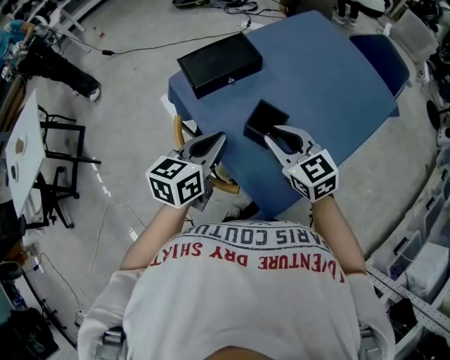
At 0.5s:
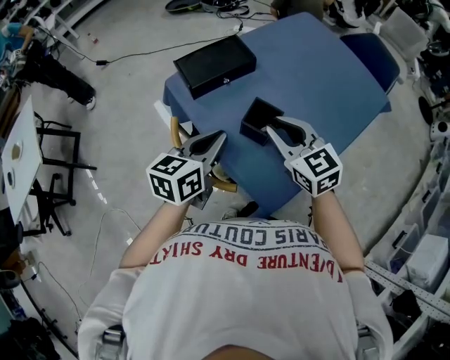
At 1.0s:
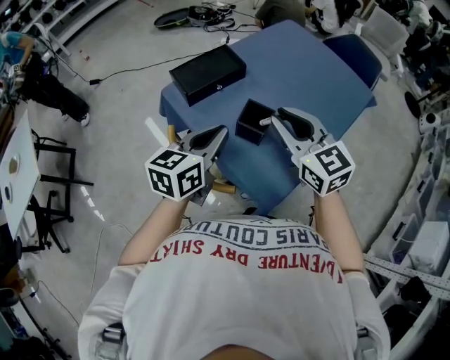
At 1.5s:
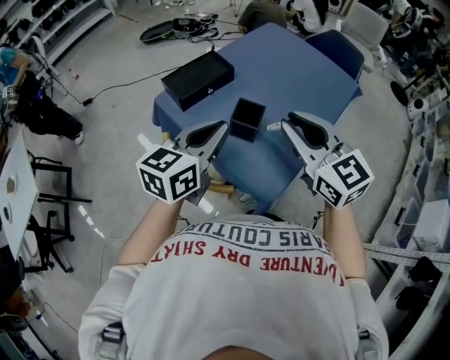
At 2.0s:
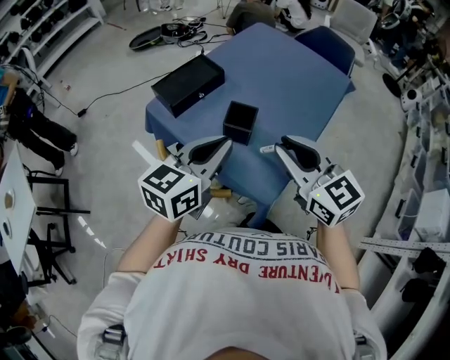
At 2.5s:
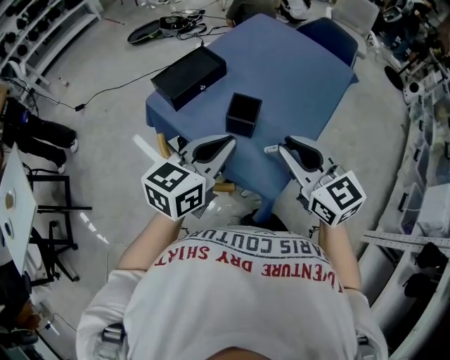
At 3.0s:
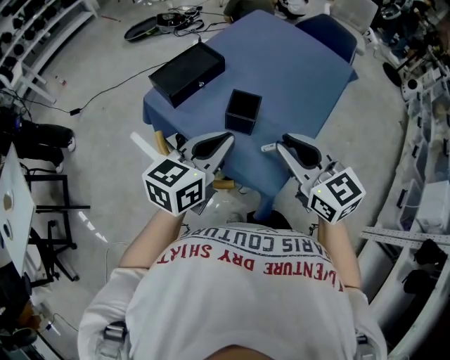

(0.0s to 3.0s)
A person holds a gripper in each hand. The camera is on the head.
0.0s - 1.5s: The right gripper is displaced upward and backward by roughly 20 cm, and turns by roughly 20 degrees; the left gripper heads upward, covering approximately 10 cm, and swivels approximately 20 degrees.
1.5s - 3.0s: The right gripper goes roughly 5 cm downward.

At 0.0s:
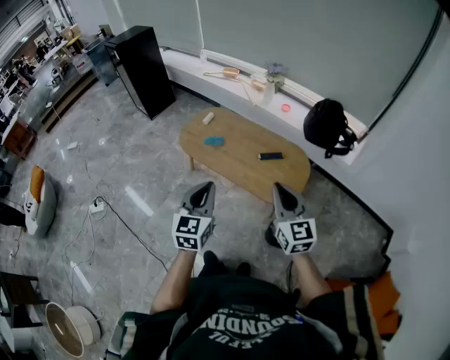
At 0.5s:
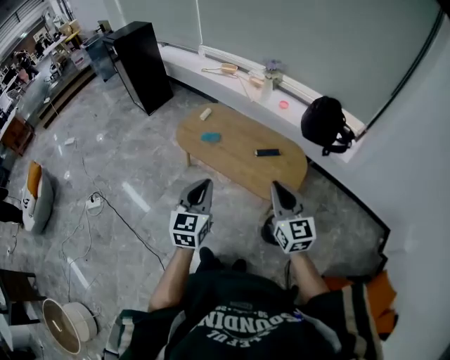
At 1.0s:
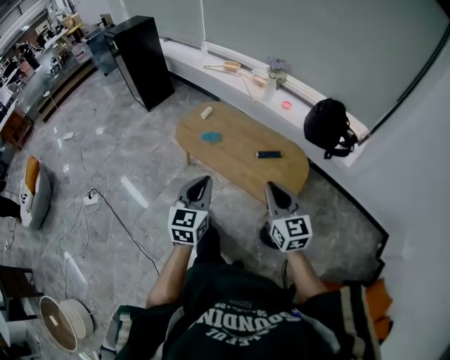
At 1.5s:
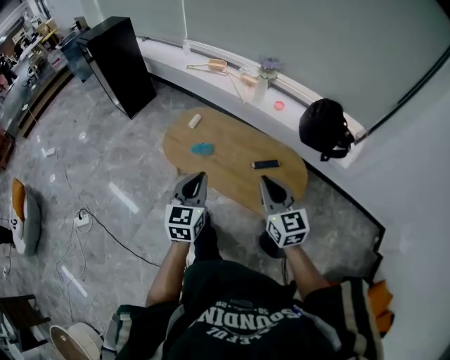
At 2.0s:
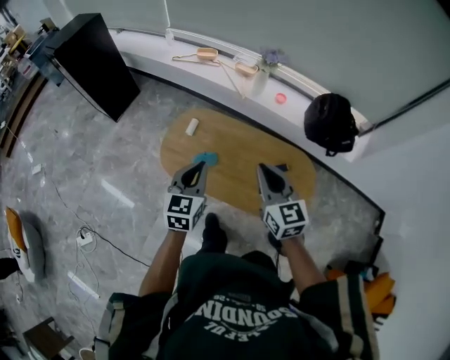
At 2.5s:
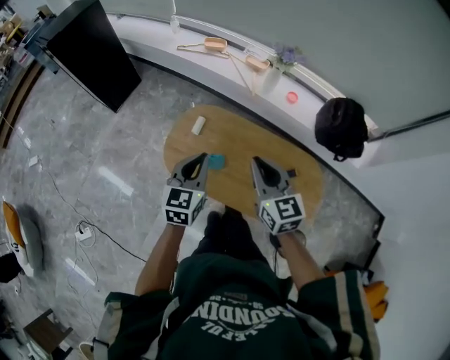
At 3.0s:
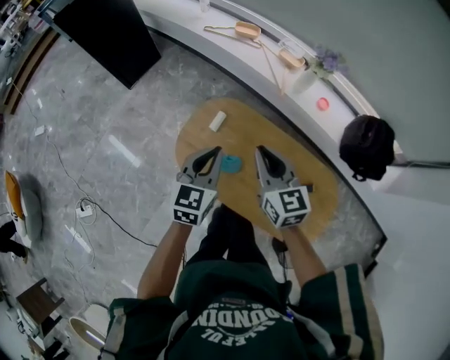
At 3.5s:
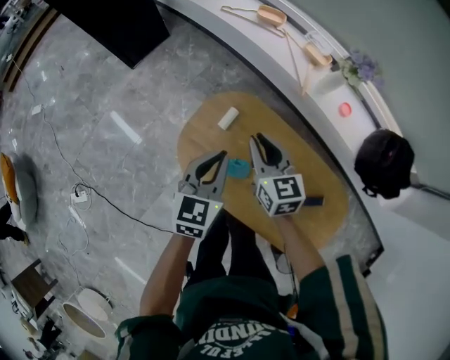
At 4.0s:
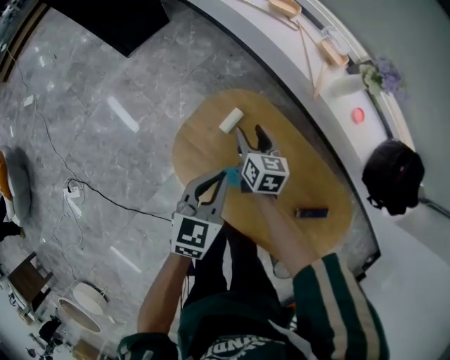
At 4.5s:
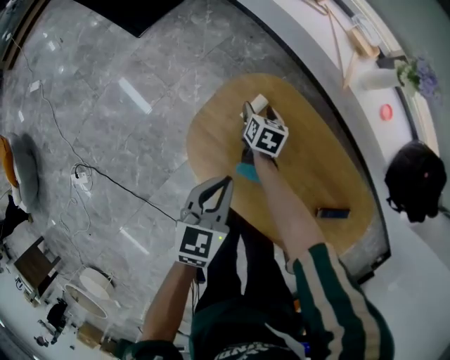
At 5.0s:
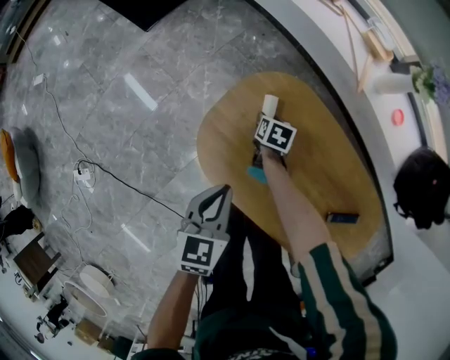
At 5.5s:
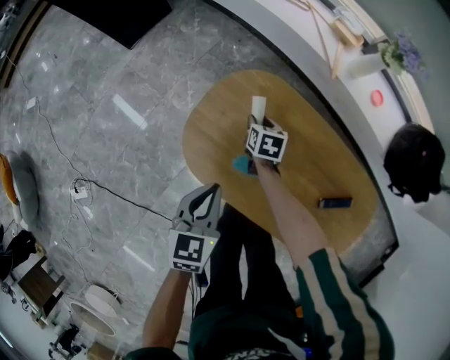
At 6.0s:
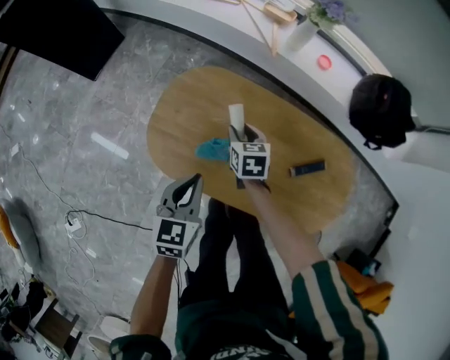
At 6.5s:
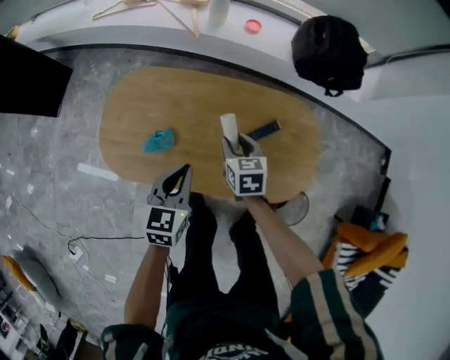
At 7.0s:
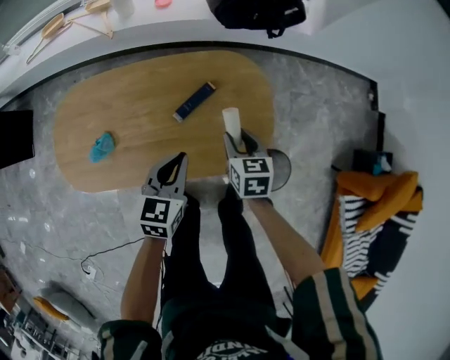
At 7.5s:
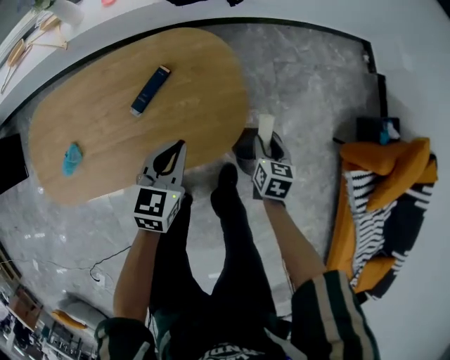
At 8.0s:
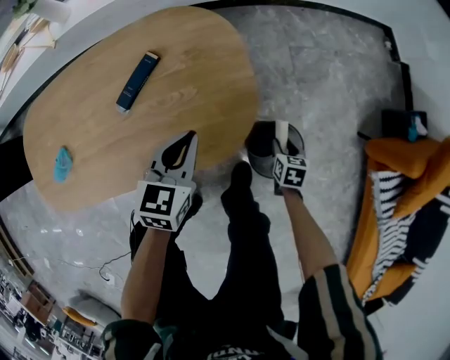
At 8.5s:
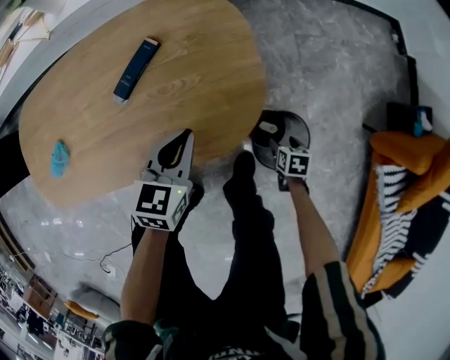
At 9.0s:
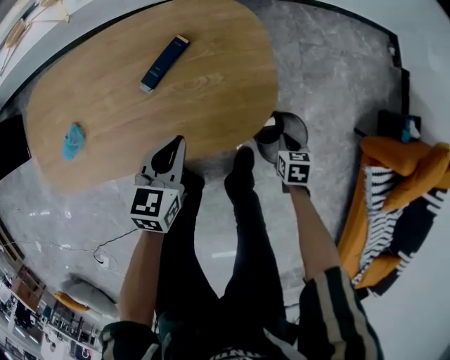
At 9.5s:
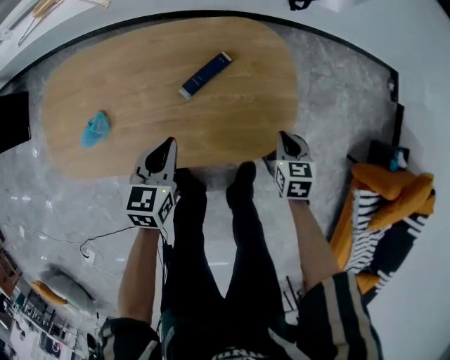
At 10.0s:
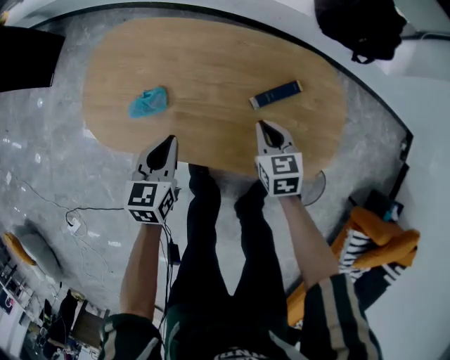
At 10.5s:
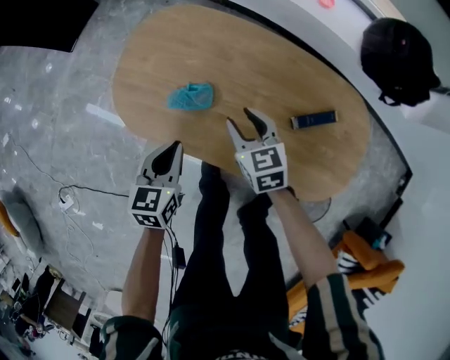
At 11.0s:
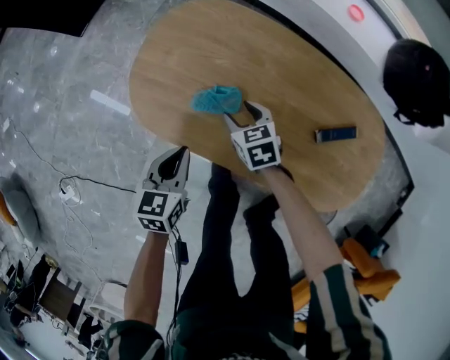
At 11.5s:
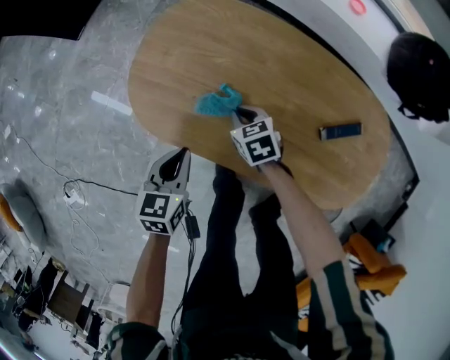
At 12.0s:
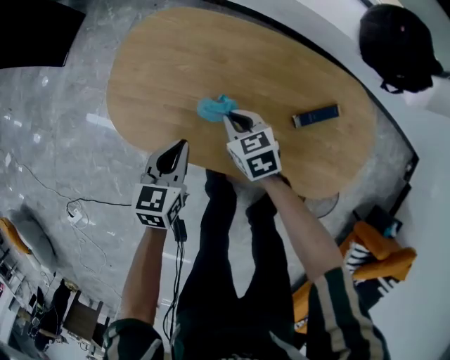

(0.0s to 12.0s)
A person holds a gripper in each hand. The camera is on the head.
0.0s - 2.0s: Both grippers move forward, some 40 cm.
2.0s - 4.0s: The right gripper heads downward, forward and to the left, covering roughly 60 cm, rotates roughly 30 degrees, and opens up, while the left gripper travels forward and downward by roughly 30 cm.
4.0s - 6.0s: The left gripper heads backward, covering some 10 cm. The right gripper moves backward and to the right, roughly 15 cm, and moves about 20 cm downward and comes back.
6.0s - 8.0s: The pair of grippers is taken some 70 cm. The right gripper changes its angle by some 50 degrees; the left gripper turns by about 40 degrees.
8.0s - 10.0s: The left gripper moves about 40 cm, and swivels some 40 degrees, while the right gripper changes place by about 50 cm, turns by some 50 degrees, and closes.
10.0s - 12.0s: The left gripper travels to the left by approximately 10 cm. The right gripper is displaced to the left and forward by approximately 25 cm, changes its angle by roughly 20 degrees, and opens and closes again.

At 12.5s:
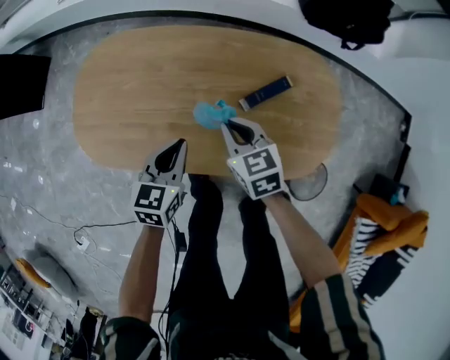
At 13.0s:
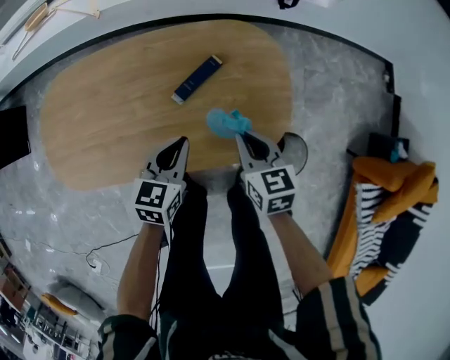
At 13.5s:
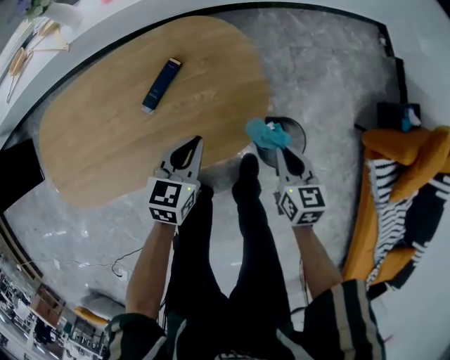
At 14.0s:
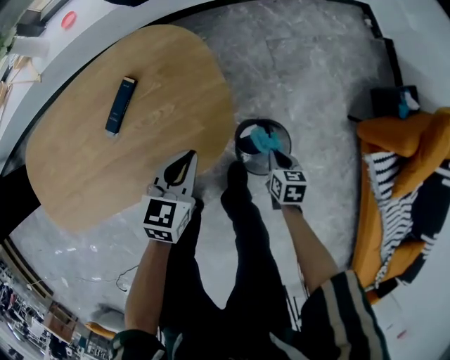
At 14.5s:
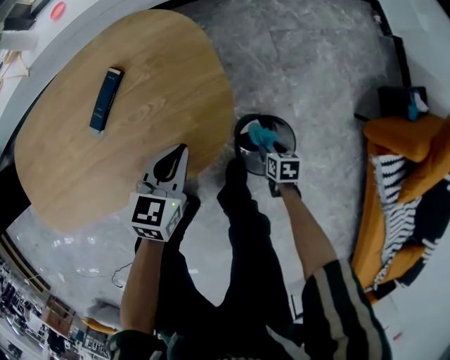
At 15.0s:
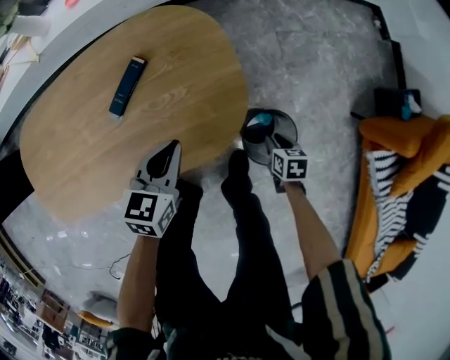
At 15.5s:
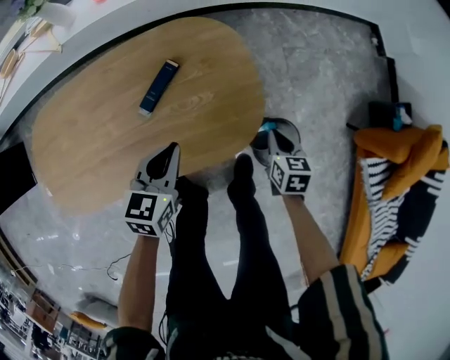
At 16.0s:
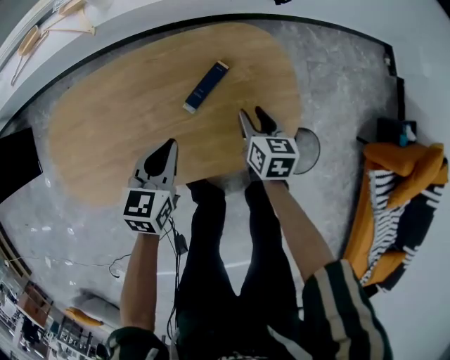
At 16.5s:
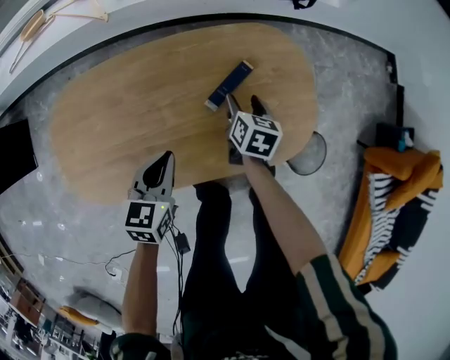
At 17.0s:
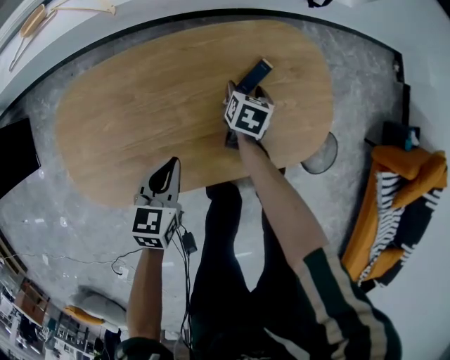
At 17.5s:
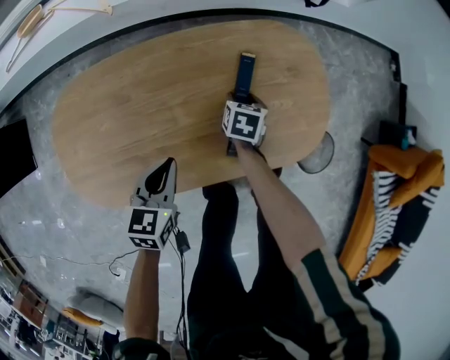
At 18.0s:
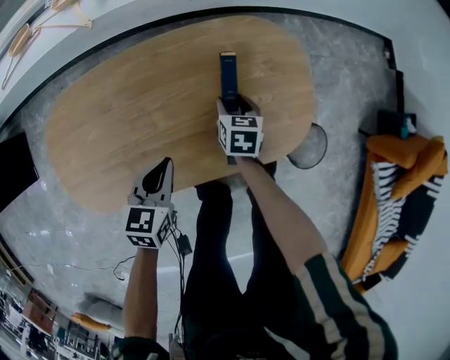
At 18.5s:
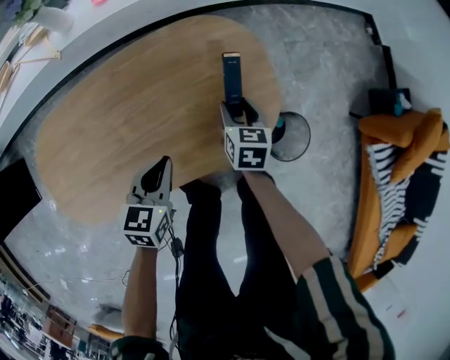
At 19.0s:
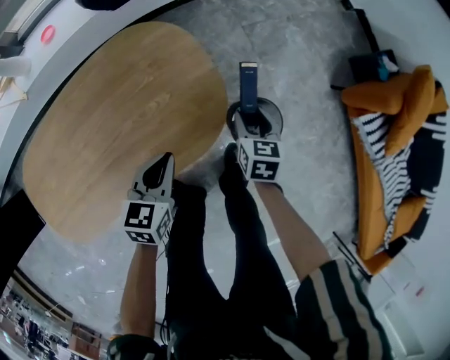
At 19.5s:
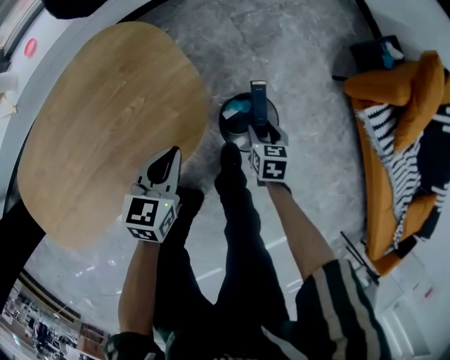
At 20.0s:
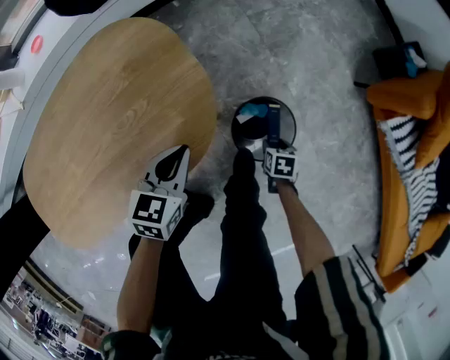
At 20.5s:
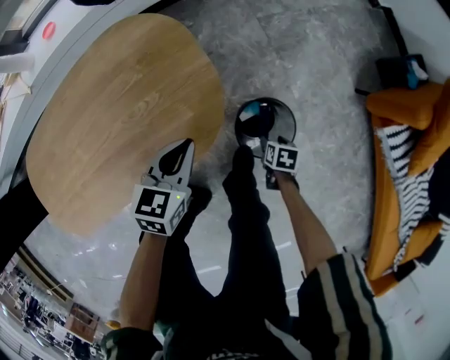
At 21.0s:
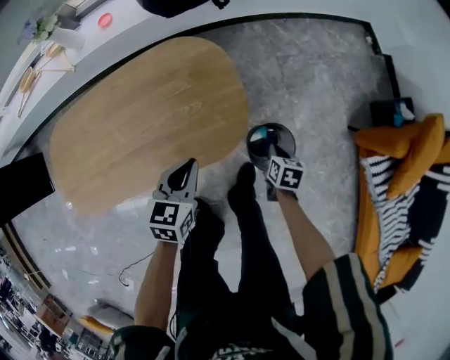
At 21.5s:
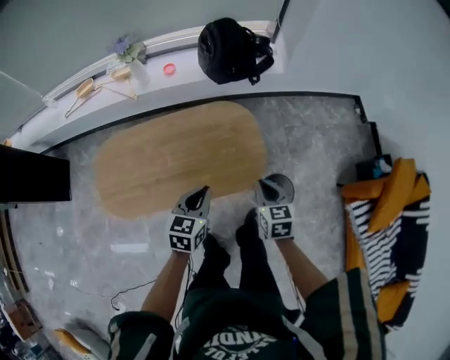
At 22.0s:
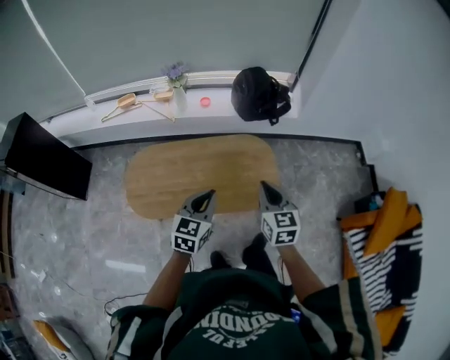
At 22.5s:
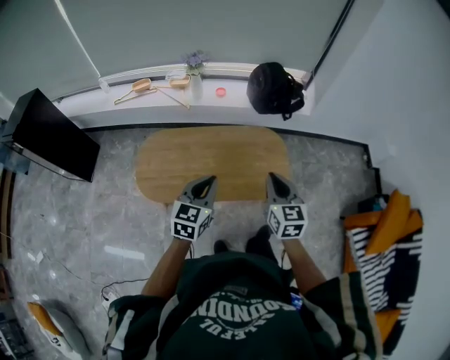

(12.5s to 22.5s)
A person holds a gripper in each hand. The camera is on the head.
12.5s - 14.5s: The left gripper ends up about 40 cm from where it was, and rotates roughly 30 degrees. Meanwhile the right gripper shifts by about 70 cm, rotates around the line of its fingers by roughly 50 degrees, clockwise from behind, and opens its fingers.
14.5s - 16.5s: The right gripper heads to the left and upward, covering some 50 cm, swivels approximately 20 degrees, and closes, then reopens. Meanwhile the left gripper shifts some 35 cm to the left.
16.5s - 18.5s: Both grippers move to the right, approximately 10 cm.
18.5s - 20.5s: The left gripper moves about 25 cm, while the right gripper shifts by some 40 cm, and changes its angle by approximately 40 degrees.
20.5s - 22.5s: The left gripper moves upward, some 50 cm, and changes its angle by approximately 30 degrees; the right gripper goes roughly 70 cm upward, angles its fingers upward, by some 60 degrees, and closes.

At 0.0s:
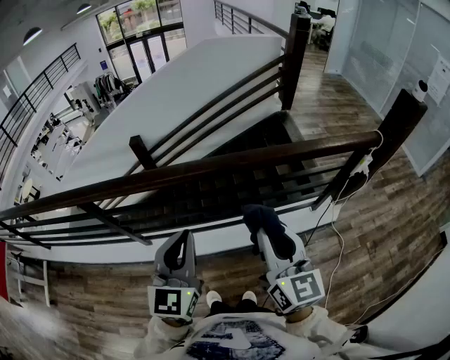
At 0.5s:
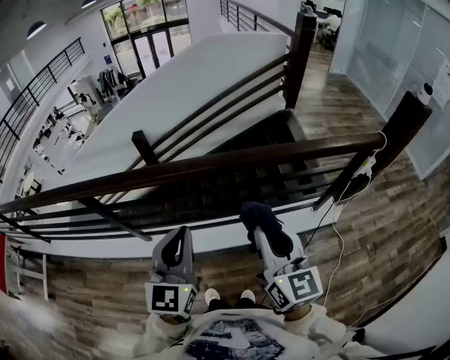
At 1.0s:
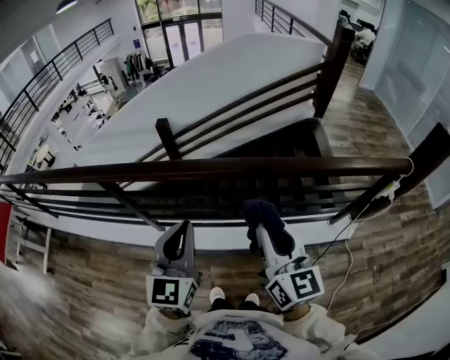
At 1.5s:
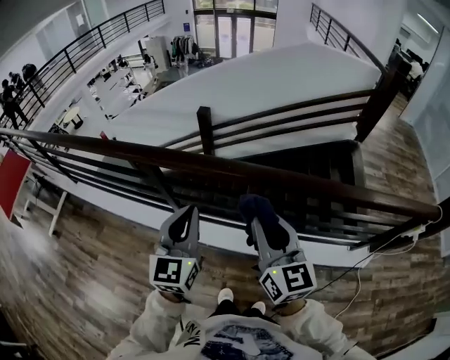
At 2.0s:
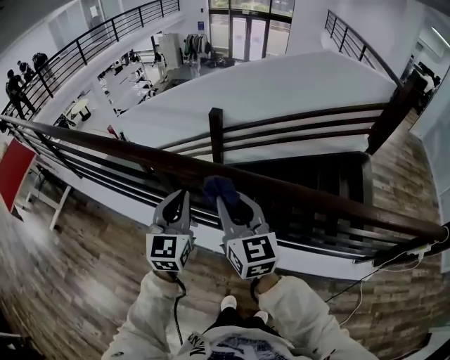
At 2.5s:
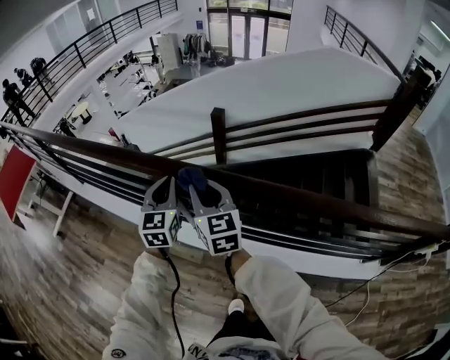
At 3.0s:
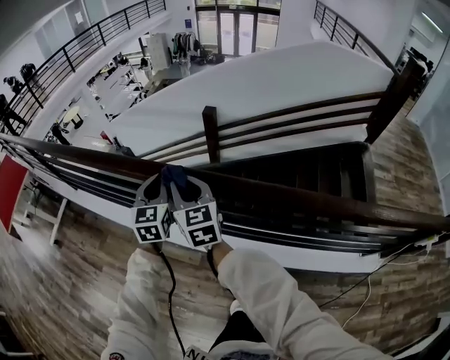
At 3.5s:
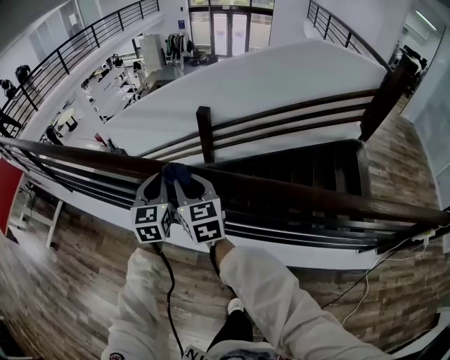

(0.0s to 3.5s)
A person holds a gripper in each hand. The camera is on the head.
0.0s - 2.0s: The left gripper moves approximately 35 cm, and turns by some 30 degrees; the right gripper shifts by roughly 40 cm, and changes its angle by roughly 30 degrees.
2.0s - 3.5s: The right gripper is displaced forward, to the left and downward by some 20 cm. The left gripper moves forward, downward and to the left, approximately 15 cm.
